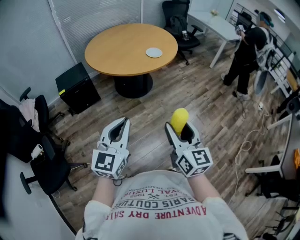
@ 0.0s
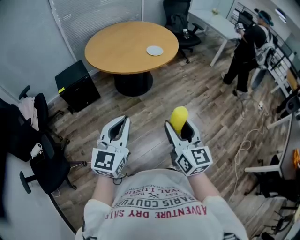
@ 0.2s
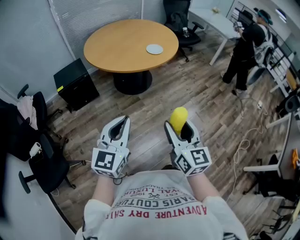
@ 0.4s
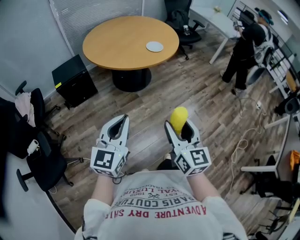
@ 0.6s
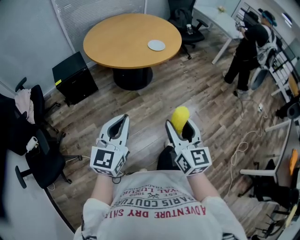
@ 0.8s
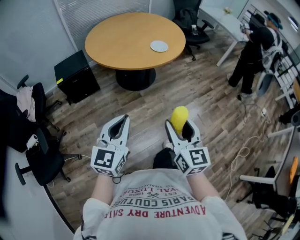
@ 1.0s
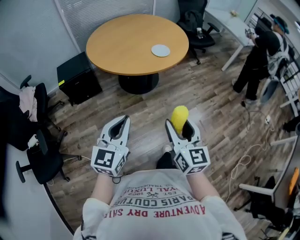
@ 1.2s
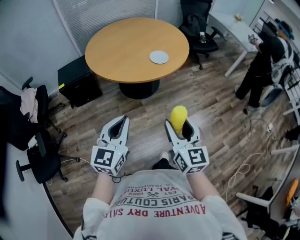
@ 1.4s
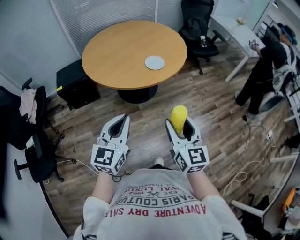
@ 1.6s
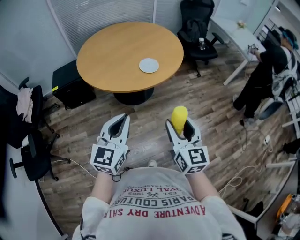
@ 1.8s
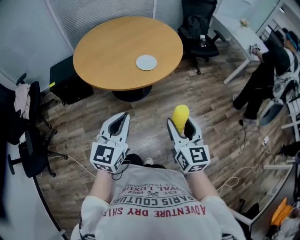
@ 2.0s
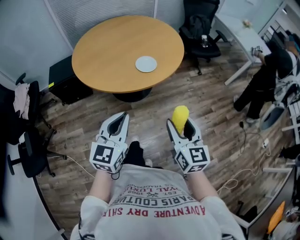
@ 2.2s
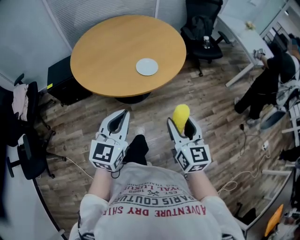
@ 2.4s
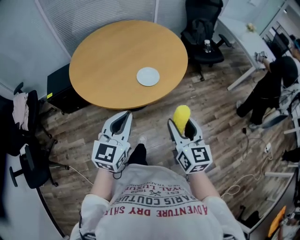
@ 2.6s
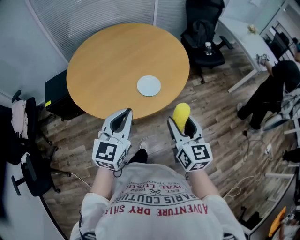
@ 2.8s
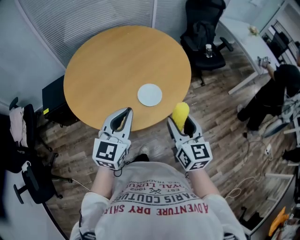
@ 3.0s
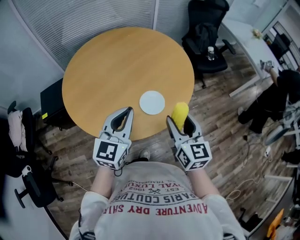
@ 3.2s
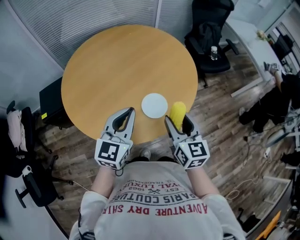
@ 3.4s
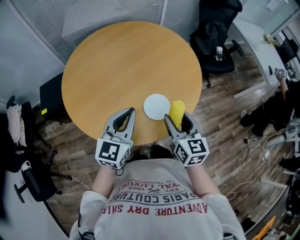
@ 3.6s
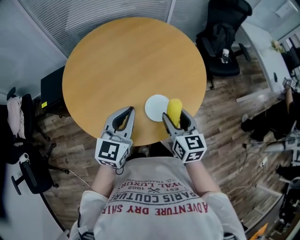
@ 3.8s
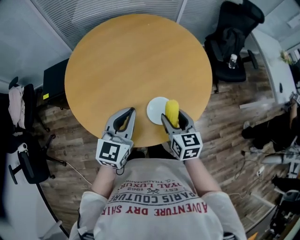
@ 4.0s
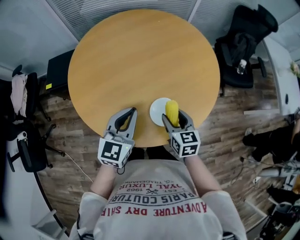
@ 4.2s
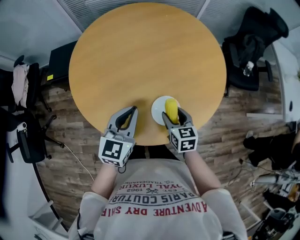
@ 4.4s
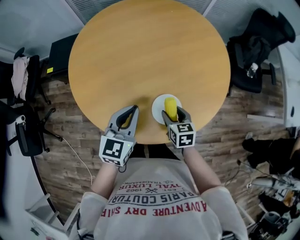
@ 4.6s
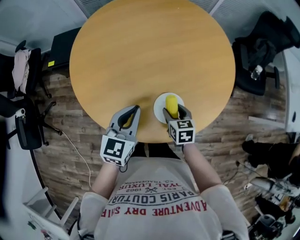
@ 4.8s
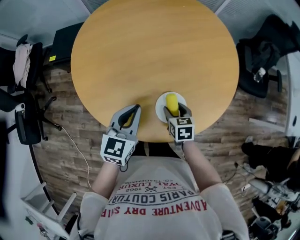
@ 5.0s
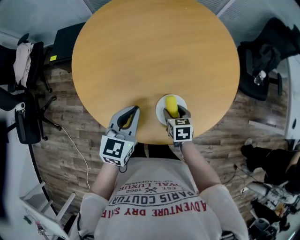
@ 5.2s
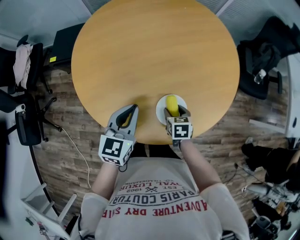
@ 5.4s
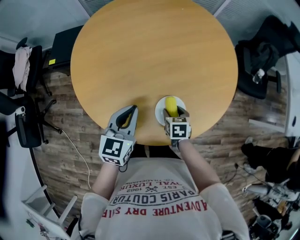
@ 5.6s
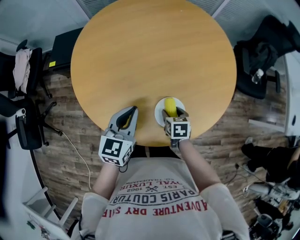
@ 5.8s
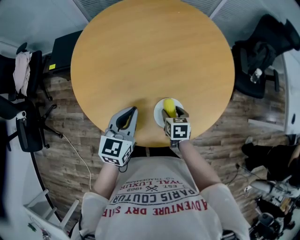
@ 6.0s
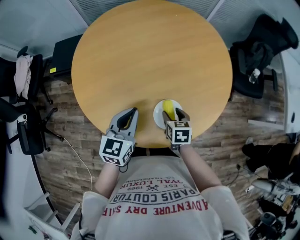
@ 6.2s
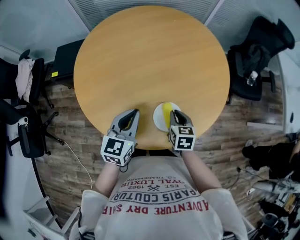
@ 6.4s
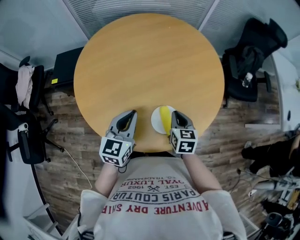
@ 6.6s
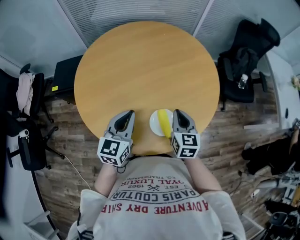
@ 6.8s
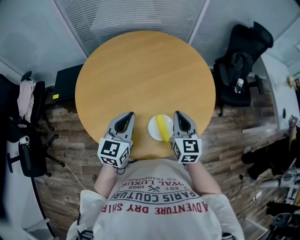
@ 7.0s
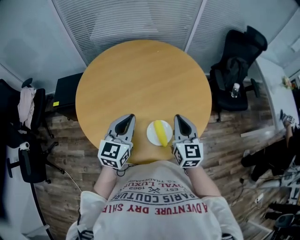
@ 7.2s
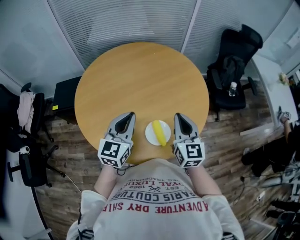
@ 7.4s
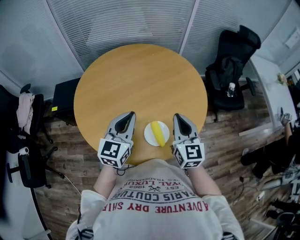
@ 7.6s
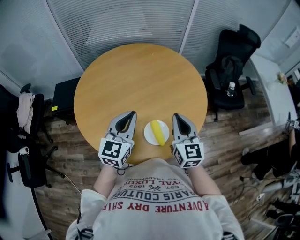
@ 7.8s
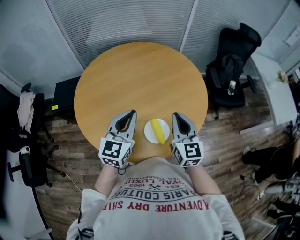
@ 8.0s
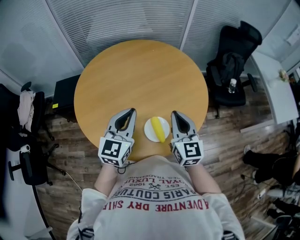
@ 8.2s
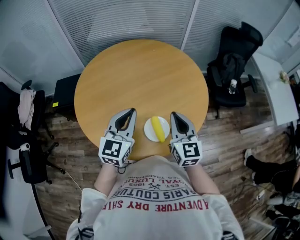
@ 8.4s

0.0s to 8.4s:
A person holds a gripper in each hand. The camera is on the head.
0.0s to 1.4s: Both grippers move forward and to the right, about 20 cm.
1.4s to 2.8s: The two grippers go roughly 30 cm forward.
2.8s to 4.2s: The left gripper shifts approximately 20 cm forward. The right gripper is displaced forward and downward by roughly 30 cm, and changes its angle by about 30 degrees.
4.2s to 5.6s: The right gripper shifts some 15 cm downward, and turns by roughly 30 degrees, while the left gripper goes some 5 cm downward.
5.6s to 7.0s: The right gripper shifts some 25 cm upward, angles its fingers upward, by roughly 40 degrees, and closes up, while the left gripper travels upward by roughly 10 cm.
7.0s to 8.4s: The grippers both shift upward by about 5 cm.

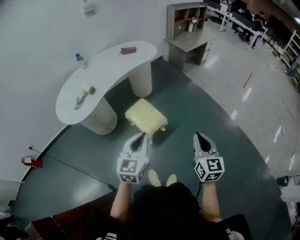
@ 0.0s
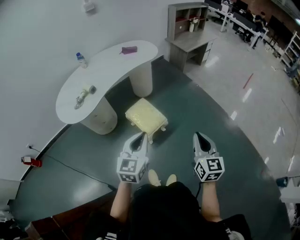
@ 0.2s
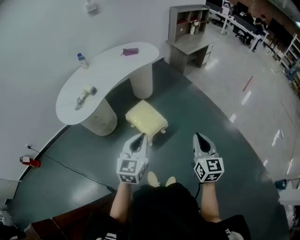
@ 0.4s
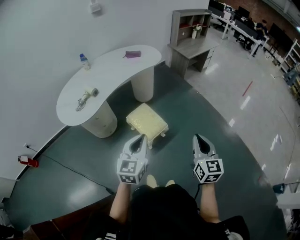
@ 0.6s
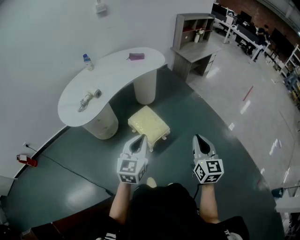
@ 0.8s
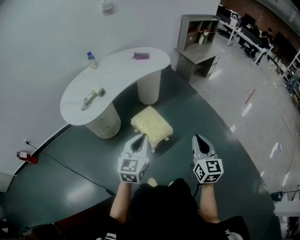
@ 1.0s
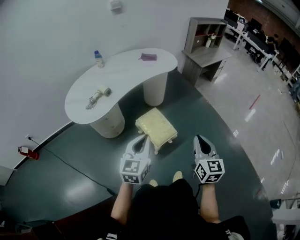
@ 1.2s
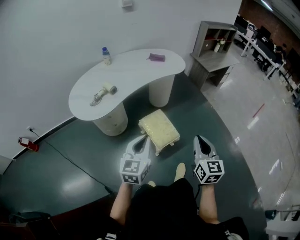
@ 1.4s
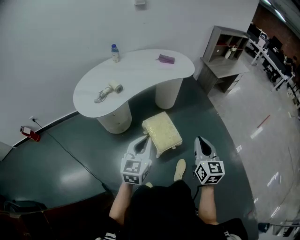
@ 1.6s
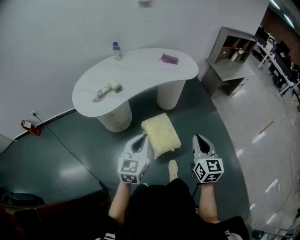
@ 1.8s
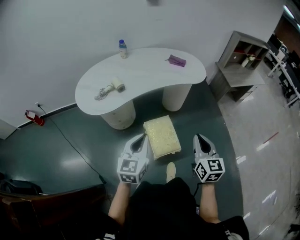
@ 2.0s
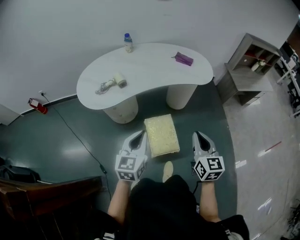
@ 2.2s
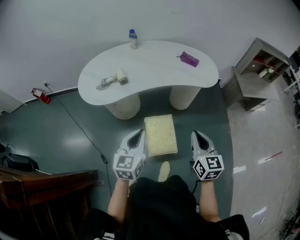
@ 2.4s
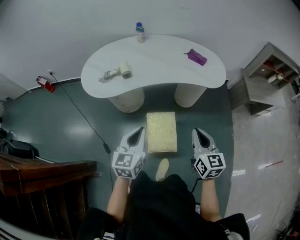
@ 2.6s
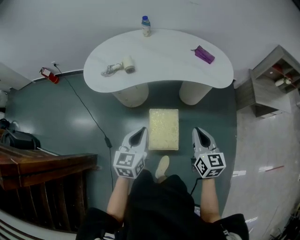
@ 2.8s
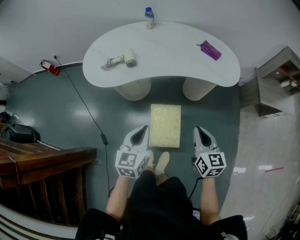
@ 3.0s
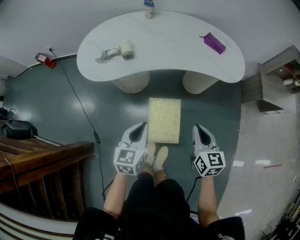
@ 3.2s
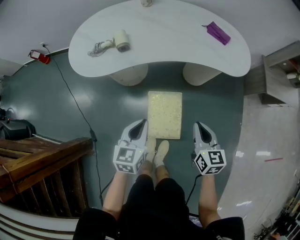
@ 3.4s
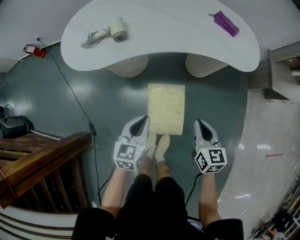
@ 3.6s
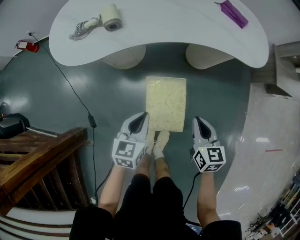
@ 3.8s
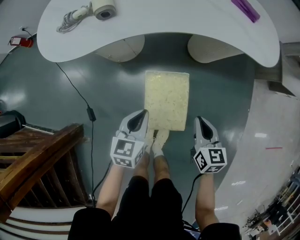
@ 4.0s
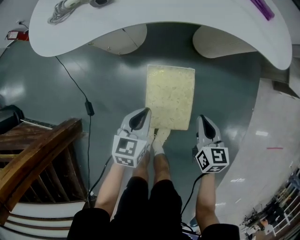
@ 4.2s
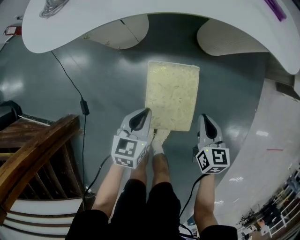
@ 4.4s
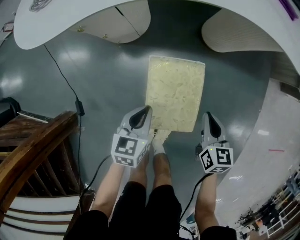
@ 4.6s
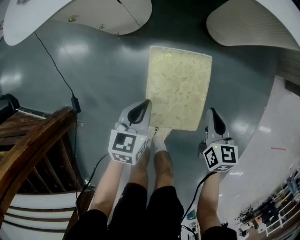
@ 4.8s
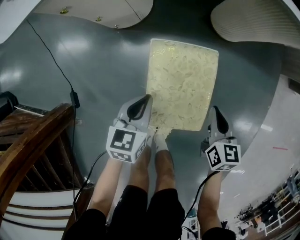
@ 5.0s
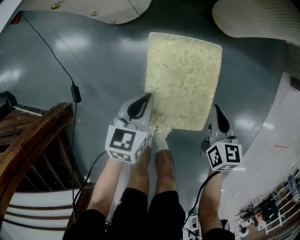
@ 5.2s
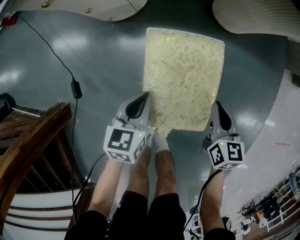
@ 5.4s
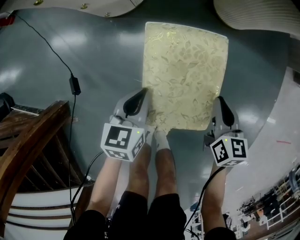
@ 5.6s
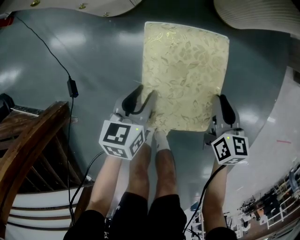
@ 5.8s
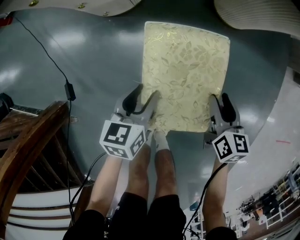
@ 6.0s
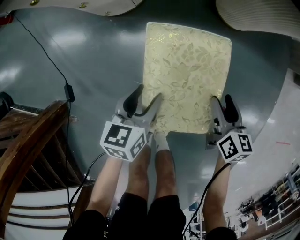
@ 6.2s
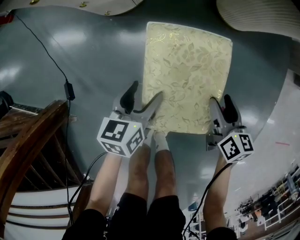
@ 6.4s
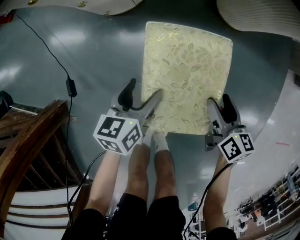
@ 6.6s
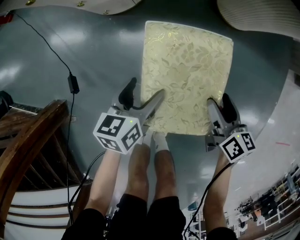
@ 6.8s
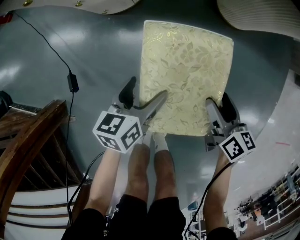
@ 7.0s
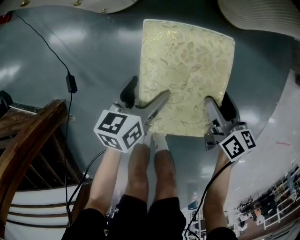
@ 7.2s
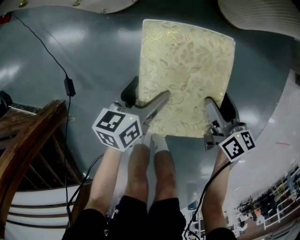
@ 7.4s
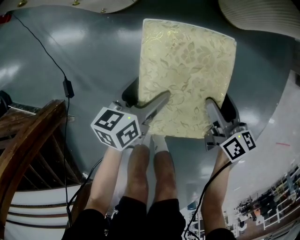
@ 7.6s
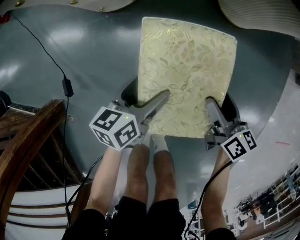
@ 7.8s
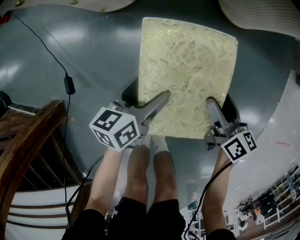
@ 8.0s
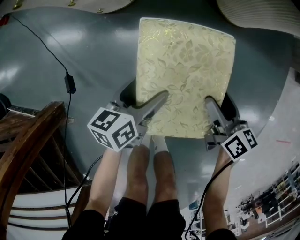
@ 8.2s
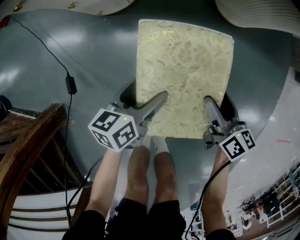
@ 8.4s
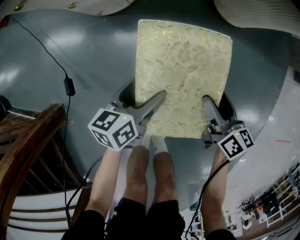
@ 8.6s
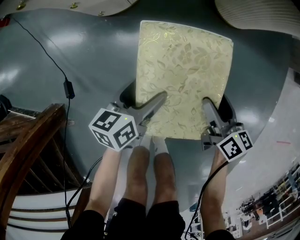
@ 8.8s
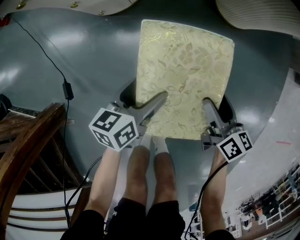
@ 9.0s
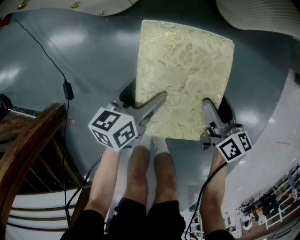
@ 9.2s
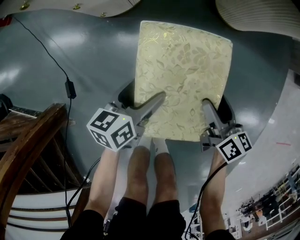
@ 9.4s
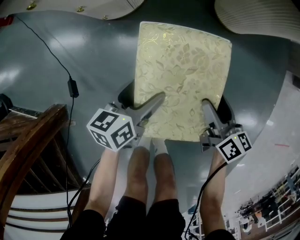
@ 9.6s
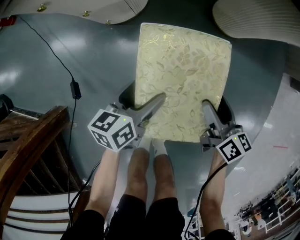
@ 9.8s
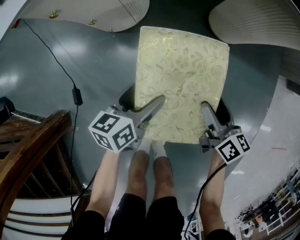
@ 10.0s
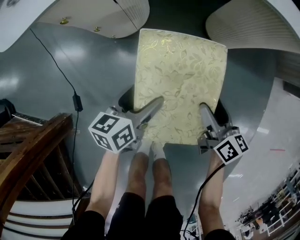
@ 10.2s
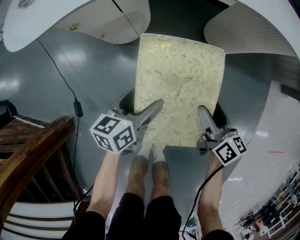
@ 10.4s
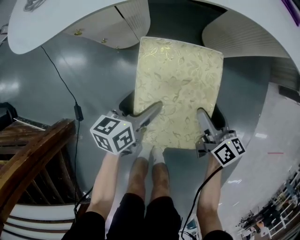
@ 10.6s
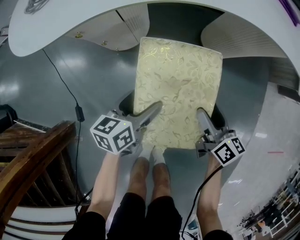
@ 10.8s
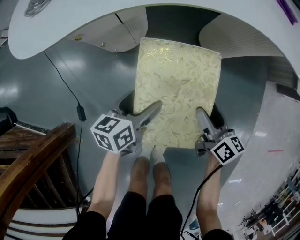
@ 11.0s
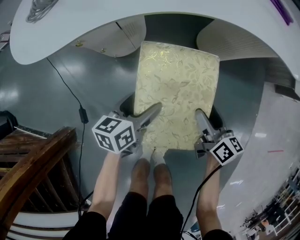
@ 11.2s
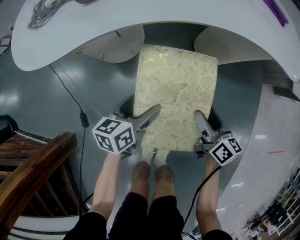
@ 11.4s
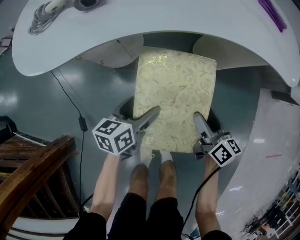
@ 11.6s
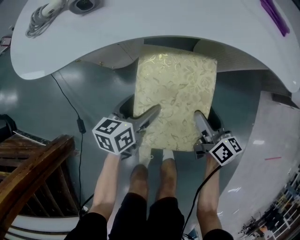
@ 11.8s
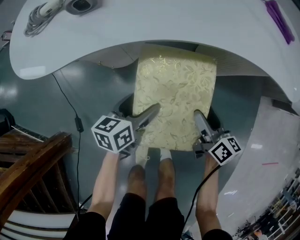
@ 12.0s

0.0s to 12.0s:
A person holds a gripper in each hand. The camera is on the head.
0.0s to 1.6s: The right gripper shifts about 20 cm forward and to the left; the left gripper shifts some 15 cm to the left and forward.
1.6s to 3.0s: The right gripper shifts by approximately 30 cm, and changes its angle by approximately 40 degrees. Meanwhile the left gripper shifts by approximately 20 cm, and changes its angle by about 30 degrees.
3.0s to 4.4s: The two grippers go about 40 cm downward. The left gripper changes its angle by about 20 degrees.
4.4s to 6.0s: Both grippers move downward, approximately 20 cm. The right gripper opens its fingers, while the left gripper opens.
6.0s to 7.6s: The right gripper opens up, while the left gripper opens its fingers.
7.6s to 9.0s: Both grippers stay about where they are.
9.0s to 10.4s: Both grippers stay about where they are.
10.4s to 12.0s: Both grippers stay about where they are.

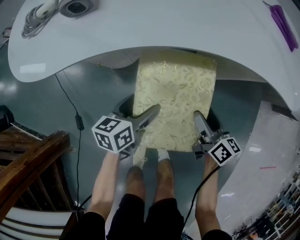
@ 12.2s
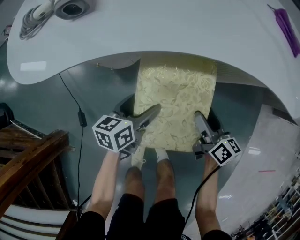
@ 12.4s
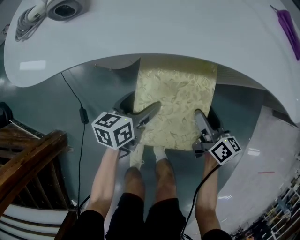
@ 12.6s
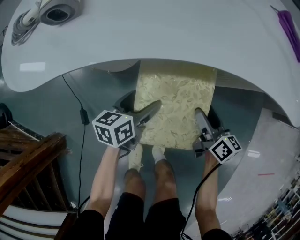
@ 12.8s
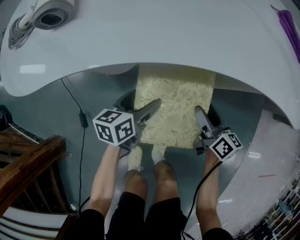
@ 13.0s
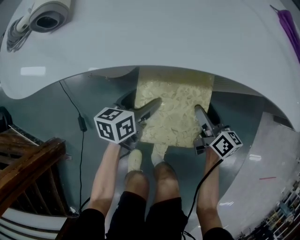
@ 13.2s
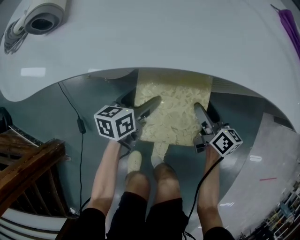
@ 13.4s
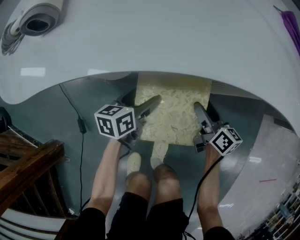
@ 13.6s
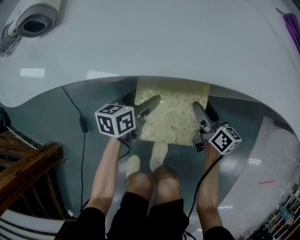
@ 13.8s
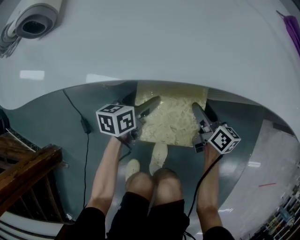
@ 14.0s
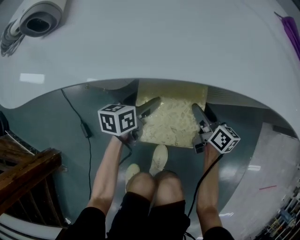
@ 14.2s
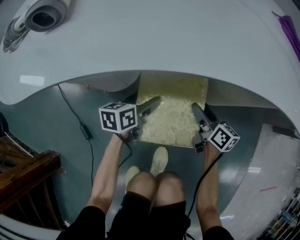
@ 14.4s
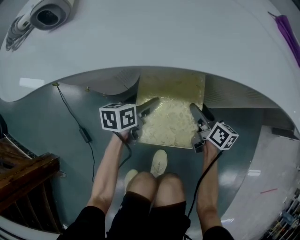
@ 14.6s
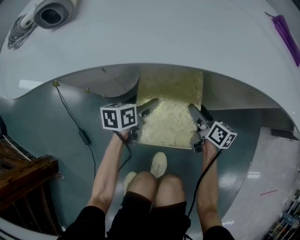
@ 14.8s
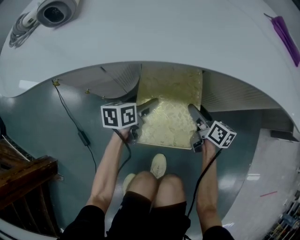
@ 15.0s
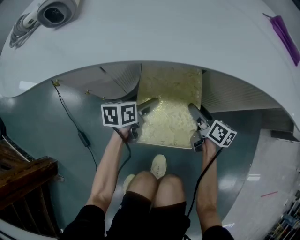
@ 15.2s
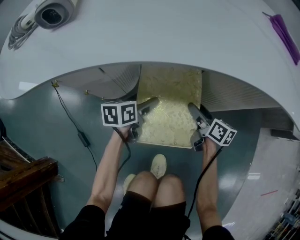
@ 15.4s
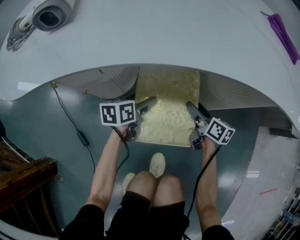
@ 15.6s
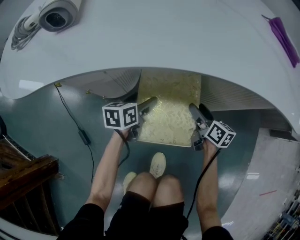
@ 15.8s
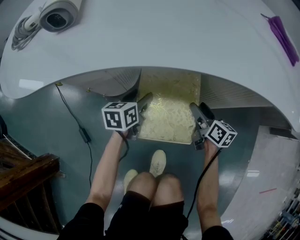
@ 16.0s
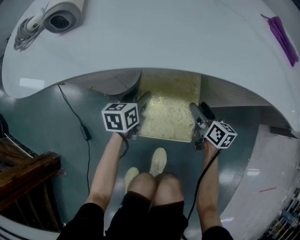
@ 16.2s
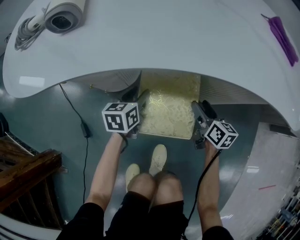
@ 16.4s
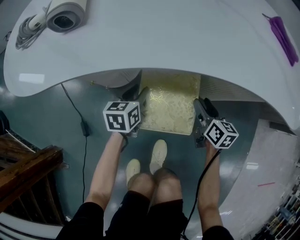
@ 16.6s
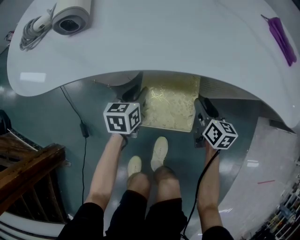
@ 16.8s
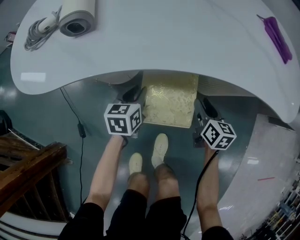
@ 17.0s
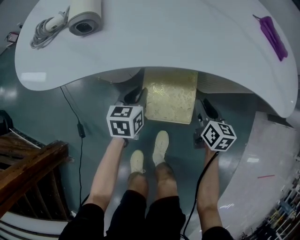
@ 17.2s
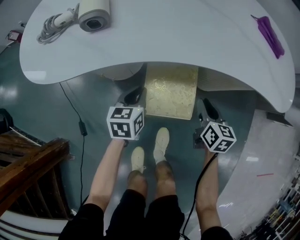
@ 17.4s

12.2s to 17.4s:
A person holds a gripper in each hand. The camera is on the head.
12.2s to 14.0s: The two grippers keep their place.
14.0s to 15.6s: The grippers make only small movements.
15.6s to 17.4s: The grippers both shift upward and backward by approximately 20 cm. The left gripper rotates some 20 degrees, and closes its fingers, while the right gripper turns by some 30 degrees, and closes its fingers.
